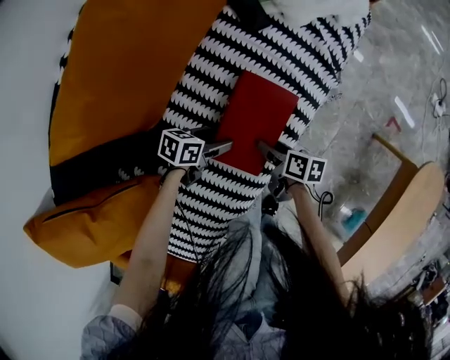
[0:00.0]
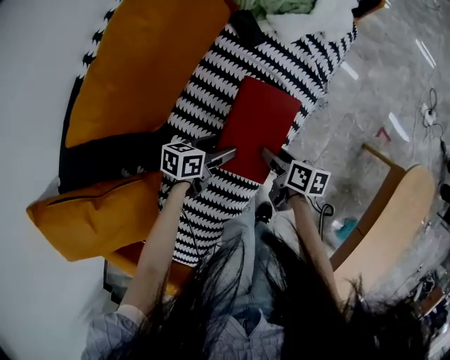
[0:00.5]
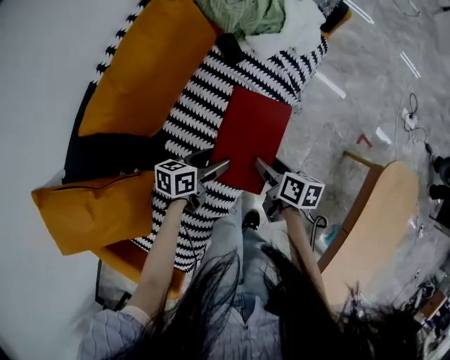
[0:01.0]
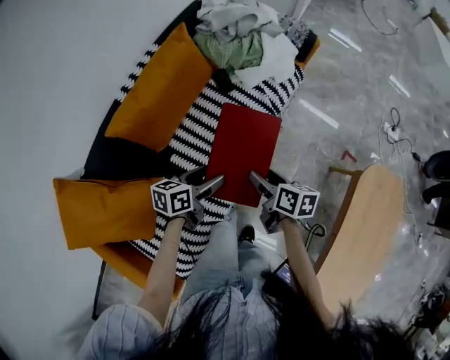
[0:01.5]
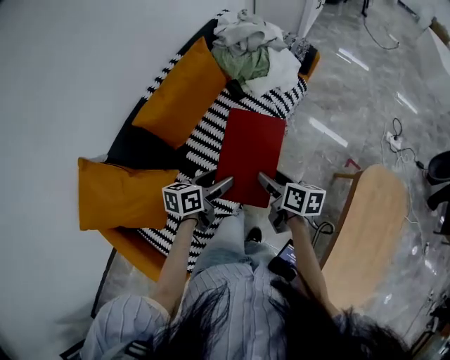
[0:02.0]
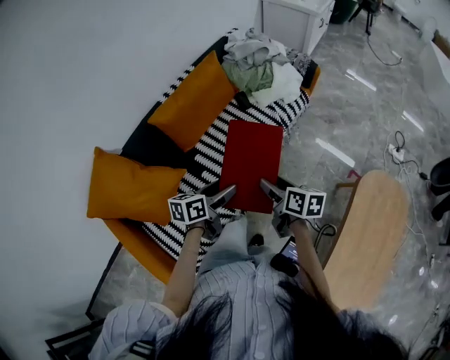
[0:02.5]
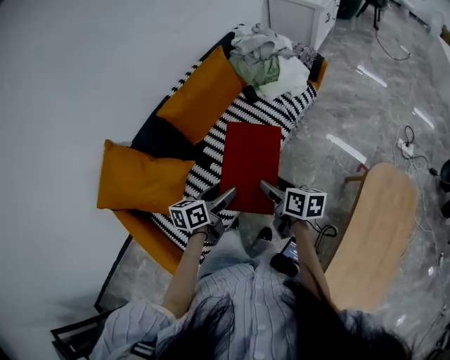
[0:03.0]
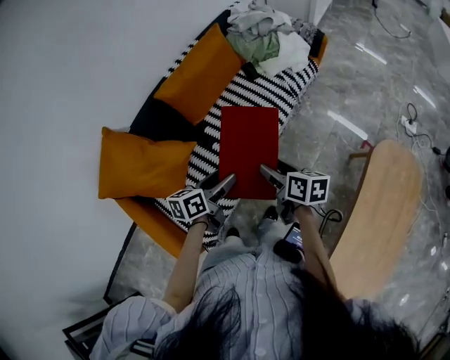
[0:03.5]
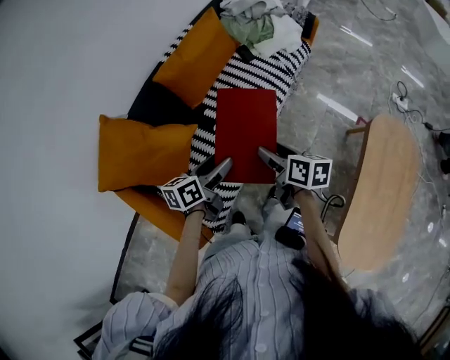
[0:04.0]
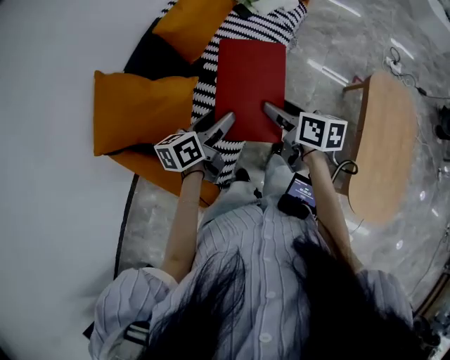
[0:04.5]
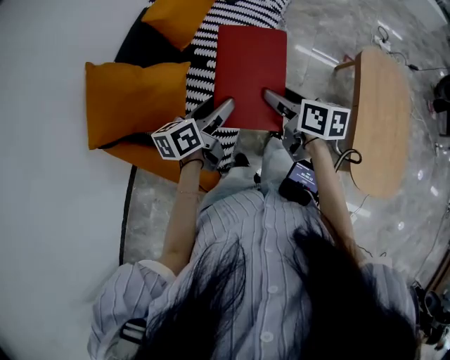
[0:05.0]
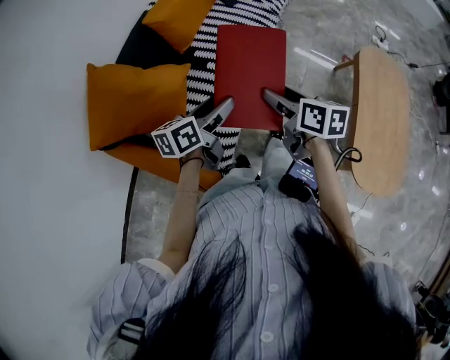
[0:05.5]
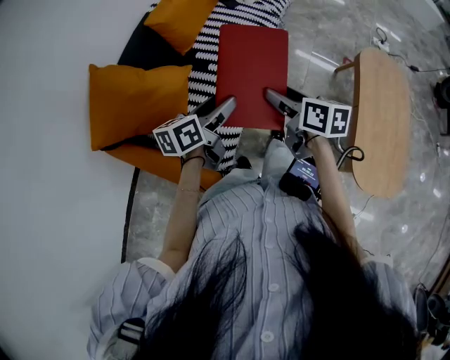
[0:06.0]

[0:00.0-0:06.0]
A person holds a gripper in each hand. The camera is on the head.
0:00.0 to 0:02.0: The grippers both shift upward by some 40 cm. The right gripper turns by roughly 30 degrees; the left gripper turns by about 30 degrees.
0:02.0 to 0:04.0: Both grippers move backward and to the left, some 20 cm.
0:04.0 to 0:06.0: The right gripper moves backward, some 15 cm; the left gripper shifts some 10 cm backward and to the left.

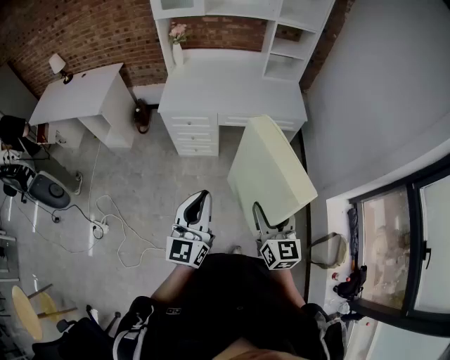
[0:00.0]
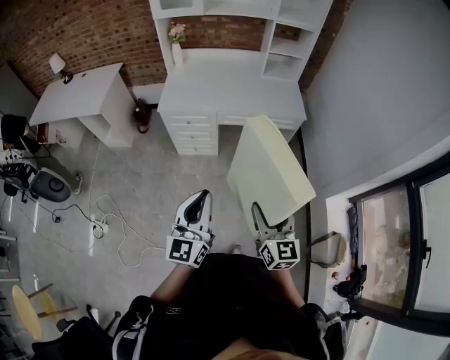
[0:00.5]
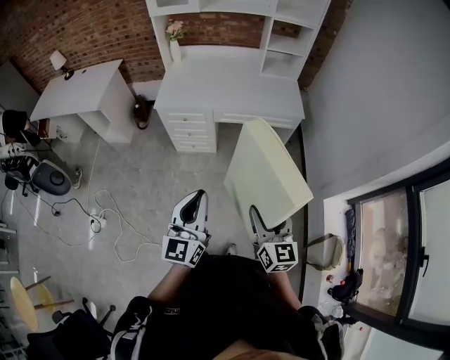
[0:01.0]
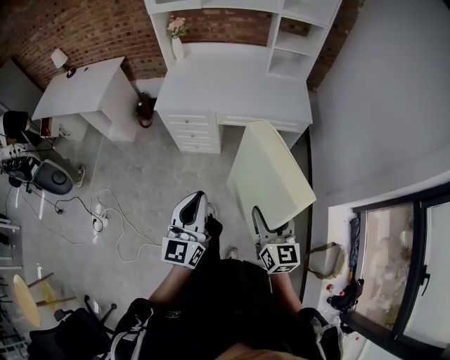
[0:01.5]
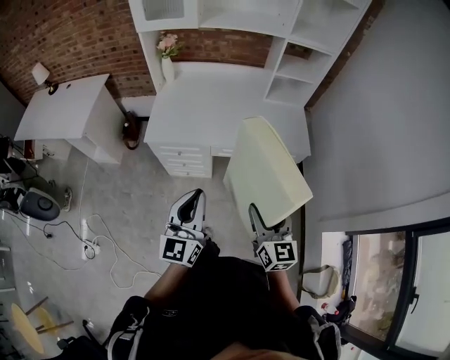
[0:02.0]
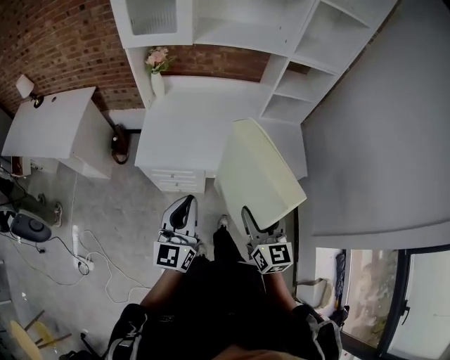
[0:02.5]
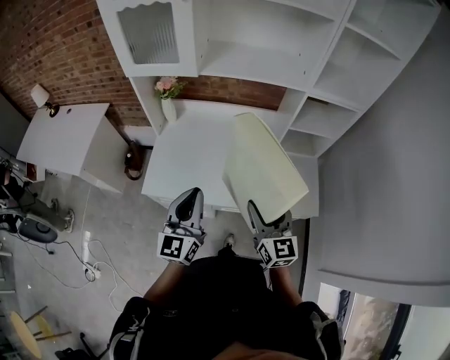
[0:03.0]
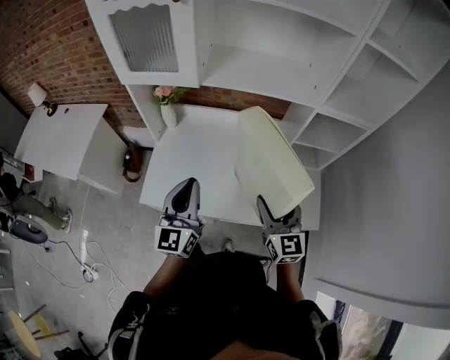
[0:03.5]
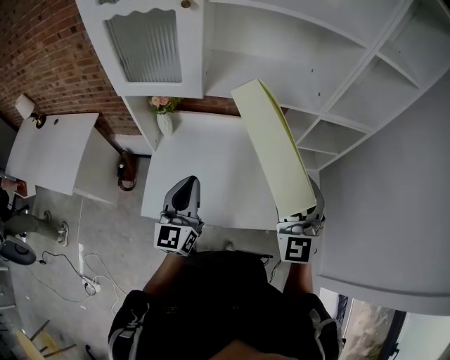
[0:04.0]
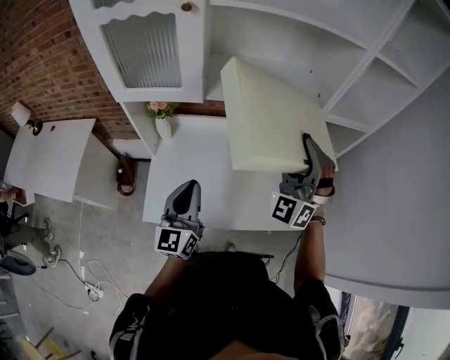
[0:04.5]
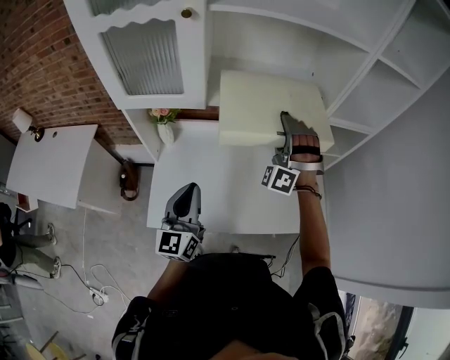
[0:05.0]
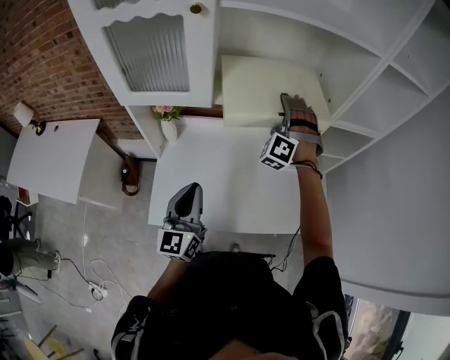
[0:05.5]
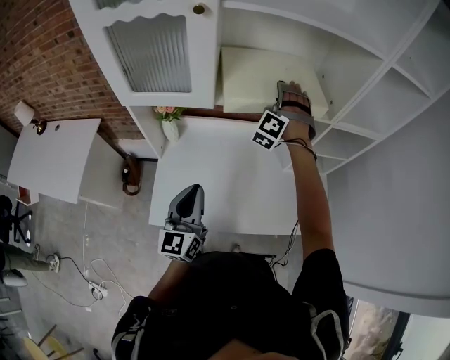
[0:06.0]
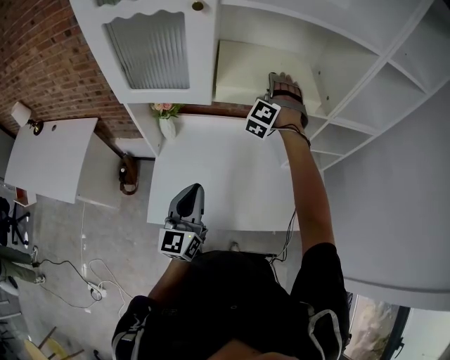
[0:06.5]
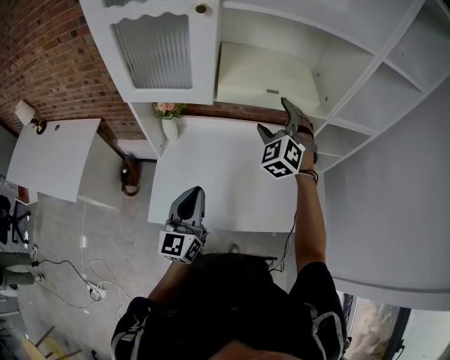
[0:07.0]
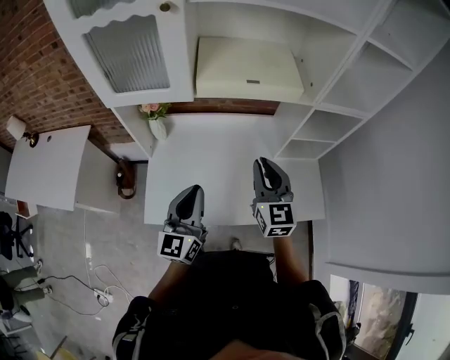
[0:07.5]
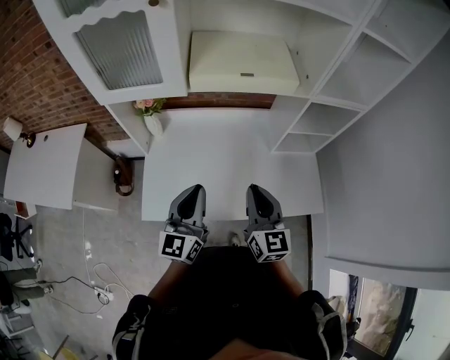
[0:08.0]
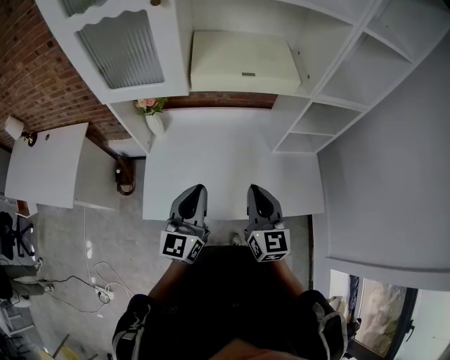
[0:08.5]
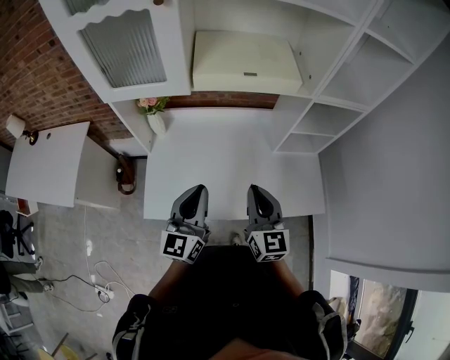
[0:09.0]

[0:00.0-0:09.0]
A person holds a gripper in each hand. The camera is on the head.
0:00.0 to 0:02.0: The grippers both shift forward by roughly 25 cm.
0:02.0 to 0:04.5: The two grippers travel together, forward, roughly 50 cm. The right gripper twists about 70 degrees counterclockwise, seen from behind.
0:04.5 to 0:07.0: The right gripper is displaced forward, to the left and downward by some 15 cm, rotates about 30 degrees, and opens.
0:07.0 to 0:09.0: The left gripper is displaced to the right by roughly 5 cm; the right gripper is displaced backward by approximately 25 cm, twists about 60 degrees clockwise, seen from behind, and closes up.

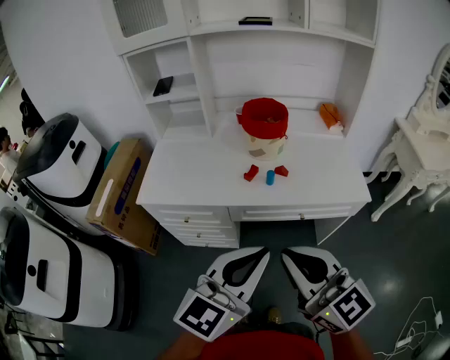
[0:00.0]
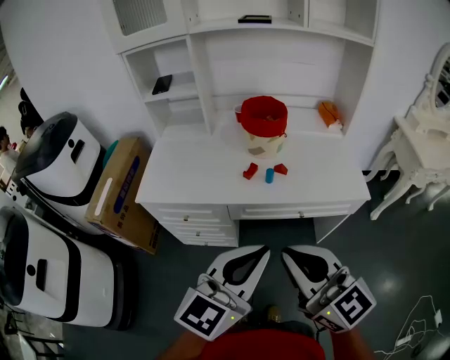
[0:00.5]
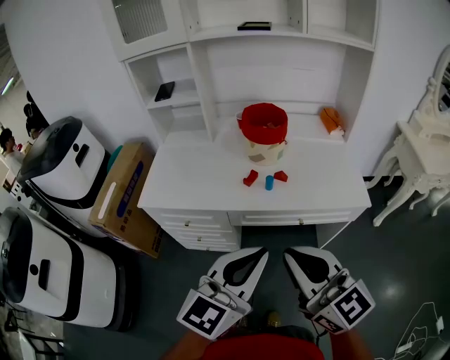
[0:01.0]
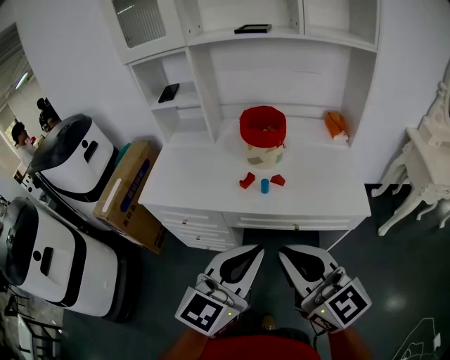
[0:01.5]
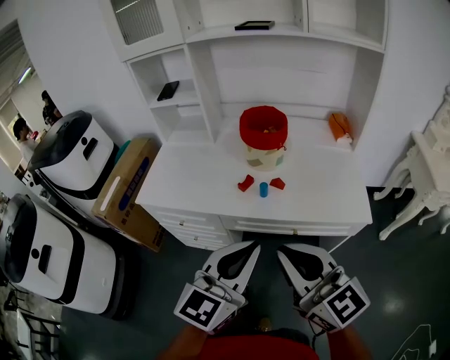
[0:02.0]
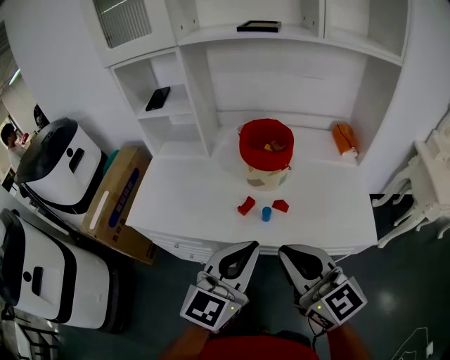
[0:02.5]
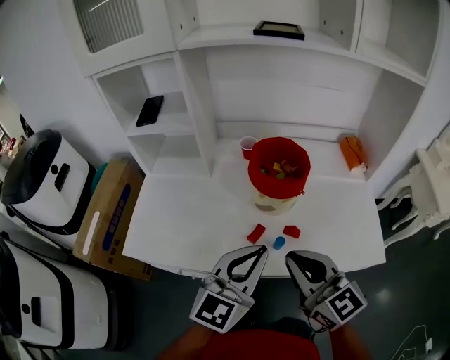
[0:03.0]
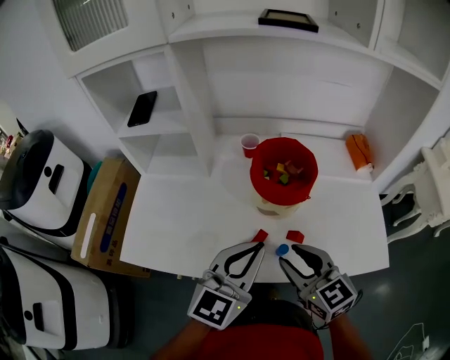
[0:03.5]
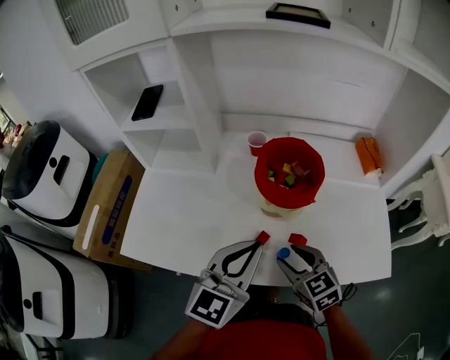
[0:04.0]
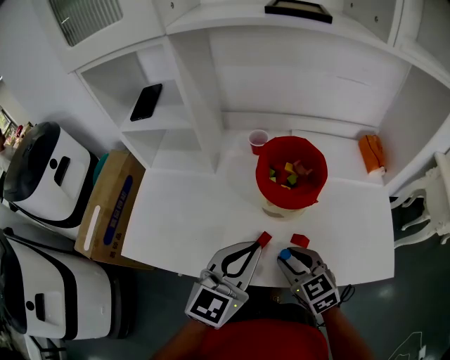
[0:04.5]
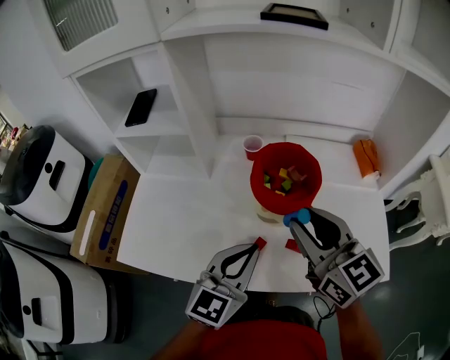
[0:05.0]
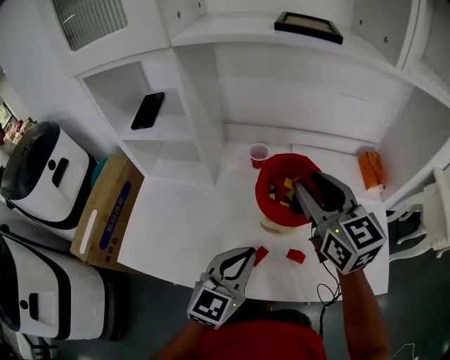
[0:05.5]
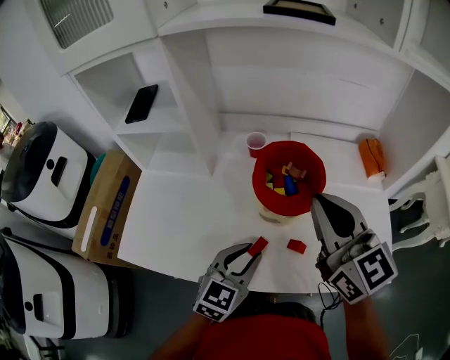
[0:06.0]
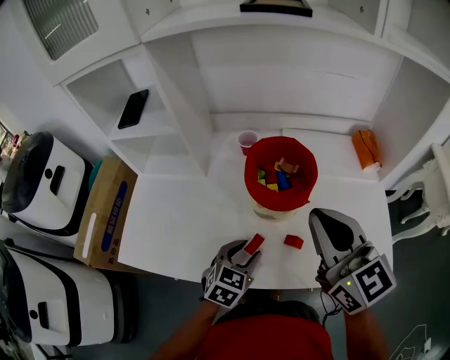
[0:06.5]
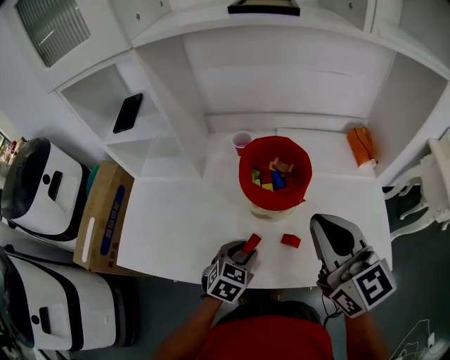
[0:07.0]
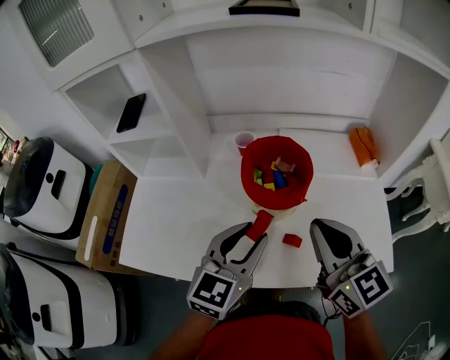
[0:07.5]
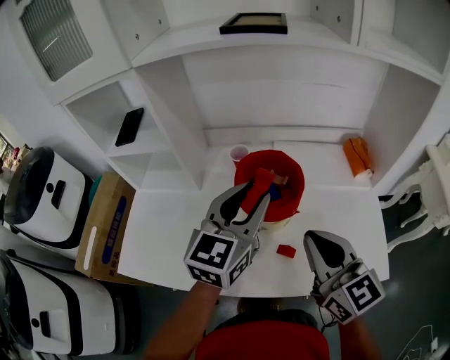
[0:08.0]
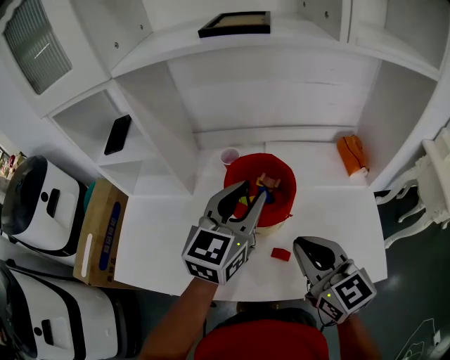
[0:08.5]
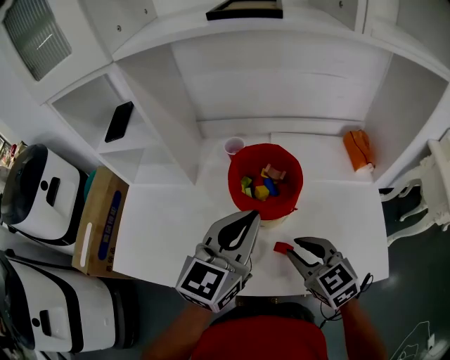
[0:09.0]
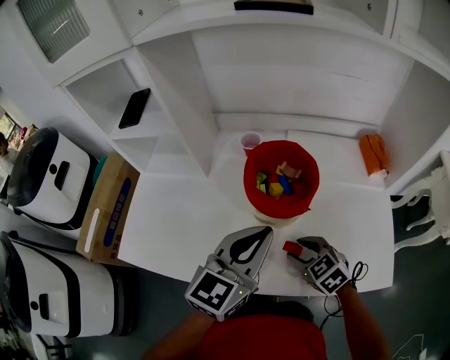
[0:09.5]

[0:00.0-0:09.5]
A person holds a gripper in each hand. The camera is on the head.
0:00.0 to 0:02.0: The left gripper goes about 10 cm forward and to the right. The right gripper heads to the right and forward, covering approximately 10 cm.
0:02.0 to 0:04.0: The left gripper shifts about 25 cm forward. The right gripper moves forward and downward, roughly 35 cm, points its fingers some 40 degrees further downward, and opens.
0:04.0 to 0:05.5: The left gripper ends up about 5 cm from where it was. The right gripper moves upward and forward, approximately 25 cm, and changes its angle by about 30 degrees.
0:05.5 to 0:07.5: The right gripper shifts approximately 15 cm backward and to the right, and closes up; the left gripper travels downward and back again, some 15 cm each way, and opens.
0:07.5 to 0:09.5: The left gripper goes forward and returns, roughly 10 cm each way, and closes; the right gripper heads downward, covering roughly 25 cm, points its fingers some 40 degrees further downward, and opens up.

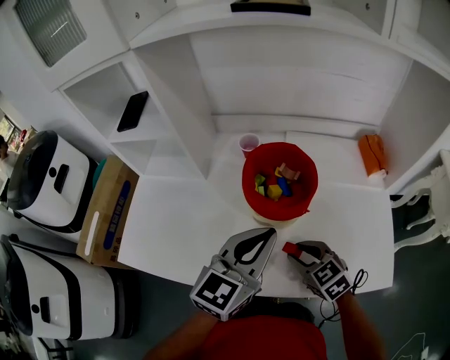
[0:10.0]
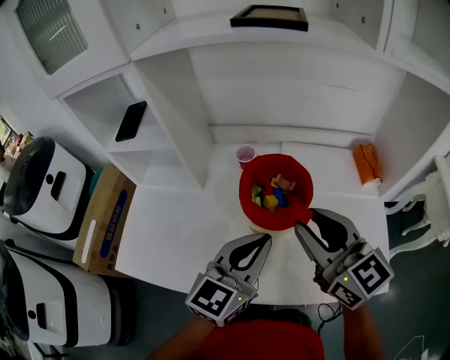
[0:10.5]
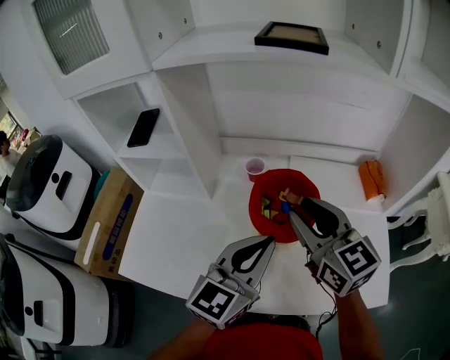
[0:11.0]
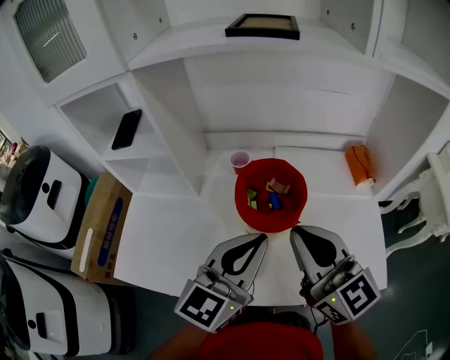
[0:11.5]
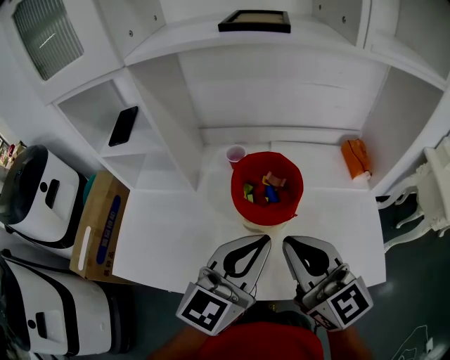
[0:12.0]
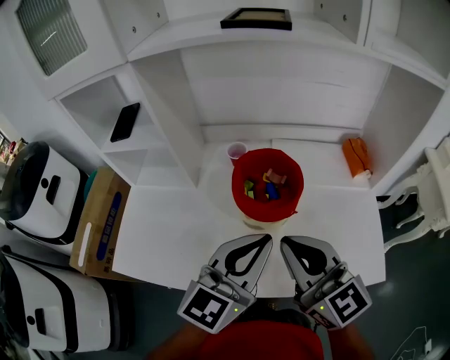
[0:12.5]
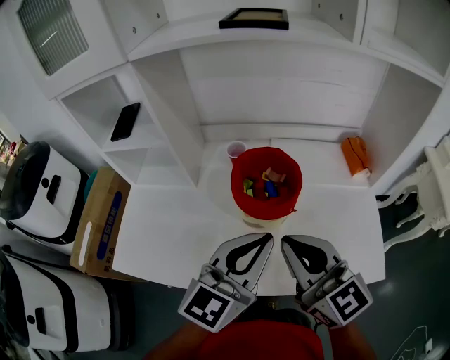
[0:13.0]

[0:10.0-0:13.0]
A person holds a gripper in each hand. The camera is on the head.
0:10.0 to 0:11.5: The left gripper travels upward by approximately 5 cm. Meanwhile the right gripper heads upward, covering about 25 cm, tips its fingers upward by some 40 degrees, and closes.
0:11.5 to 0:13.0: There are only small adjustments of the grippers.
